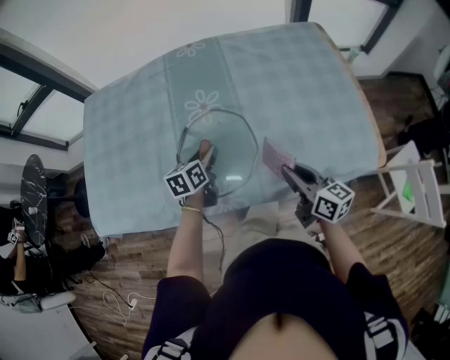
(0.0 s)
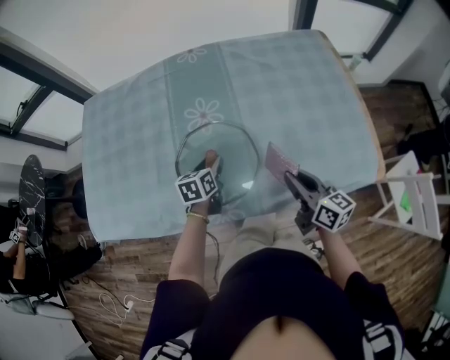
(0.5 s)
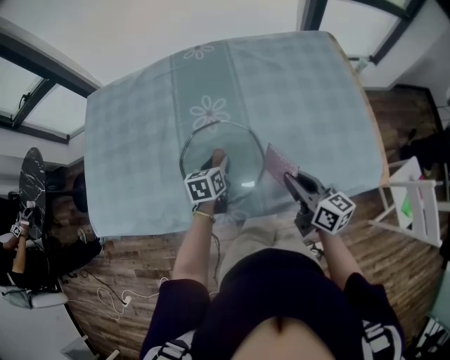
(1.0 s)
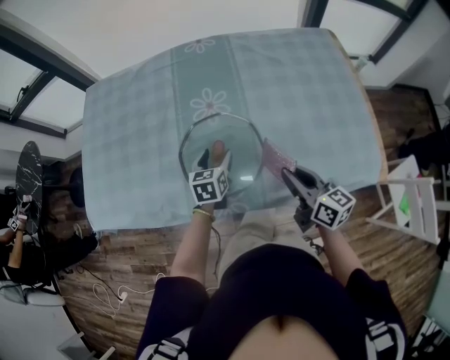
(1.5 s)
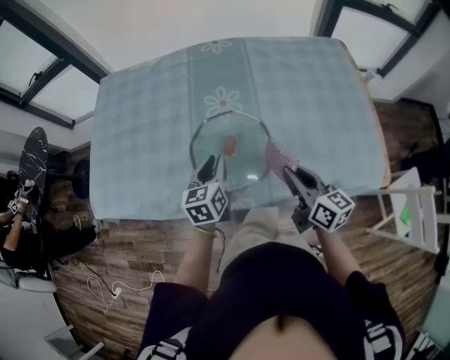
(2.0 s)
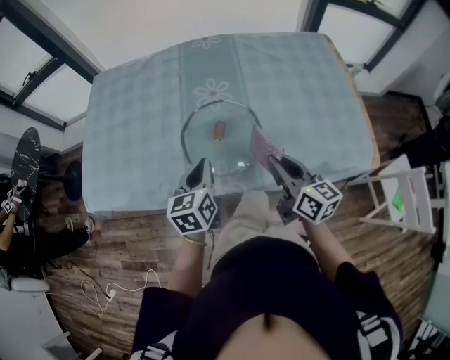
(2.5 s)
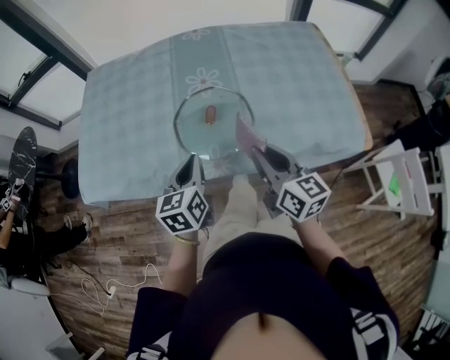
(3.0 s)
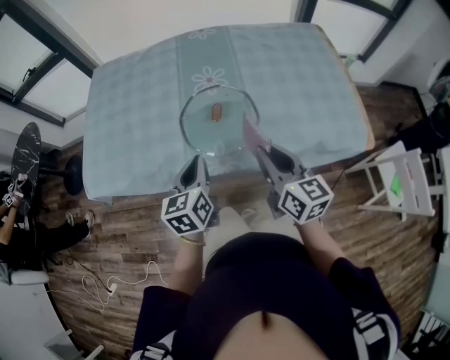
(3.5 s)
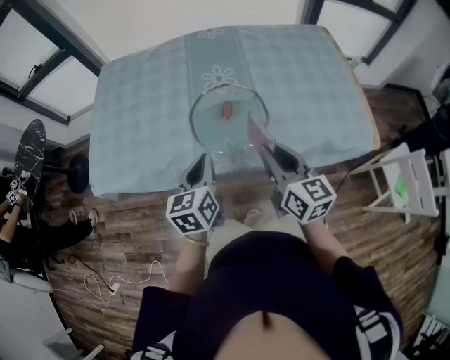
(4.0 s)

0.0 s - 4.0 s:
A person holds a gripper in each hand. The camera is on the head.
0.0 s - 2.0 s: The left gripper goes roughly 5 cm upward and backward, and opens, then closes once more.
2.0 s - 4.0 s: The right gripper shifts about 15 cm to the left, backward and upward. Meanwhile the left gripper heads backward and upward, covering approximately 15 cm, and closes up.

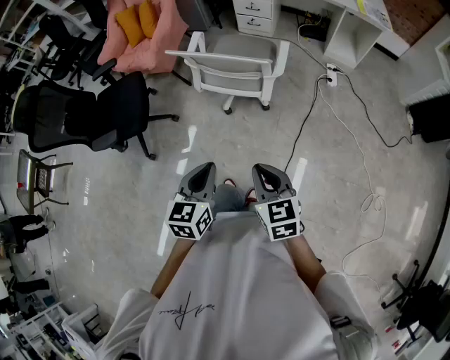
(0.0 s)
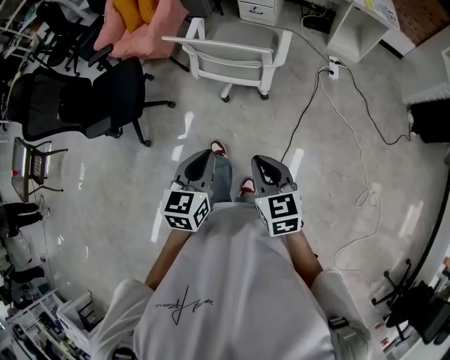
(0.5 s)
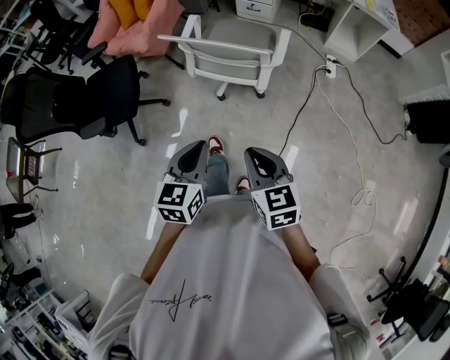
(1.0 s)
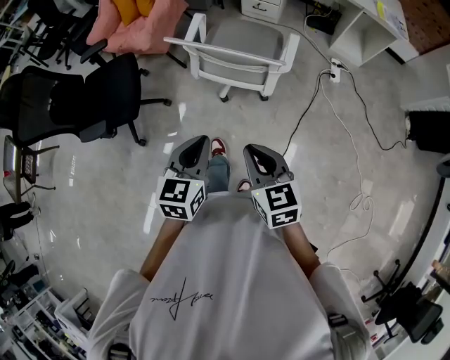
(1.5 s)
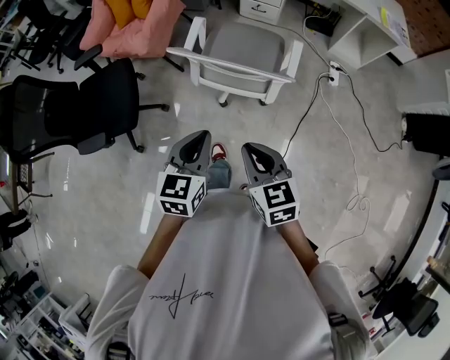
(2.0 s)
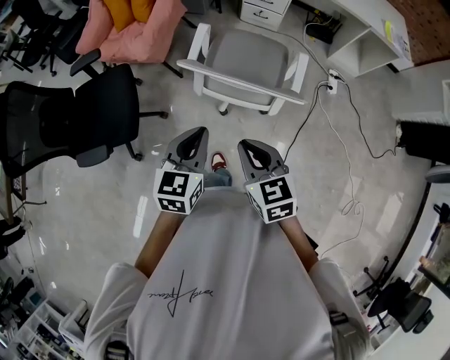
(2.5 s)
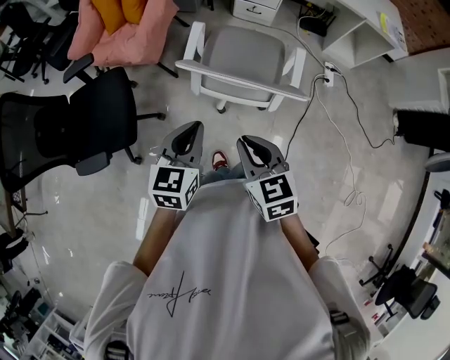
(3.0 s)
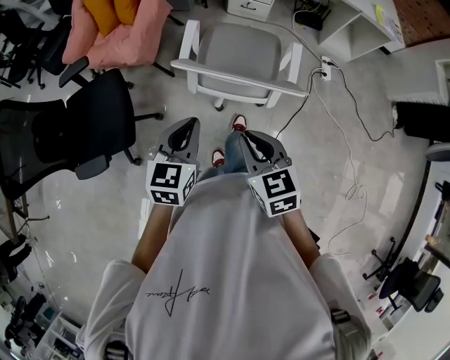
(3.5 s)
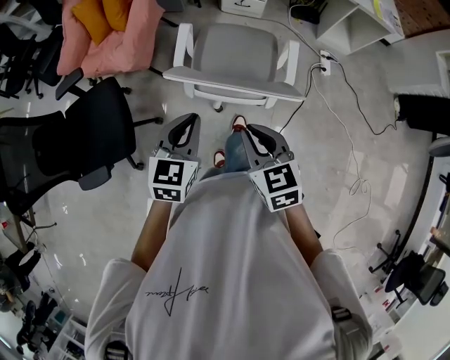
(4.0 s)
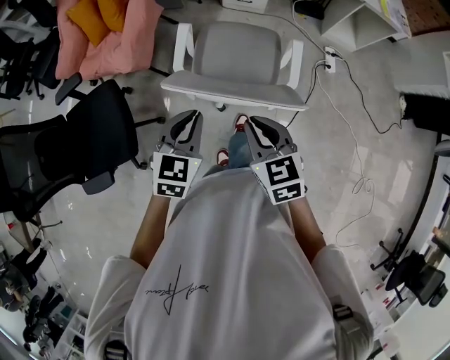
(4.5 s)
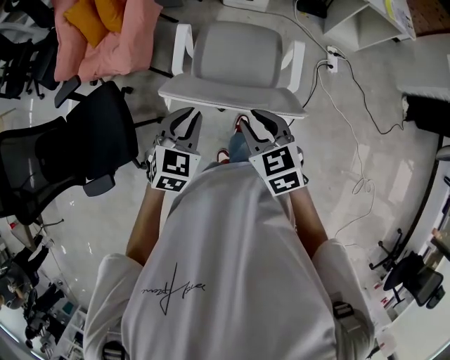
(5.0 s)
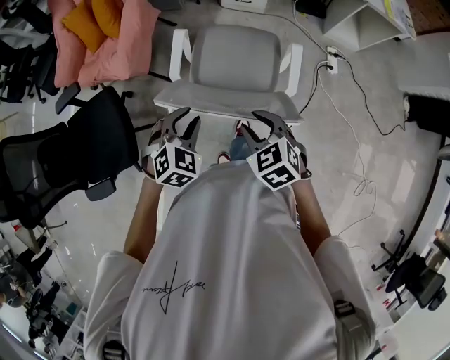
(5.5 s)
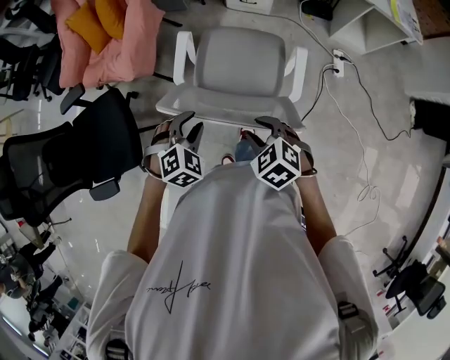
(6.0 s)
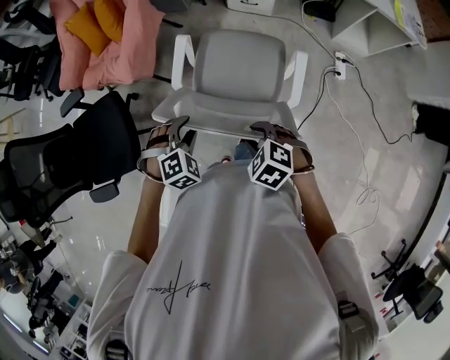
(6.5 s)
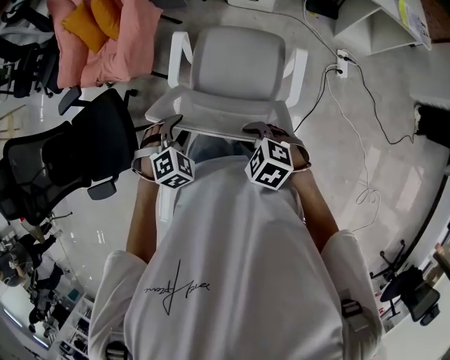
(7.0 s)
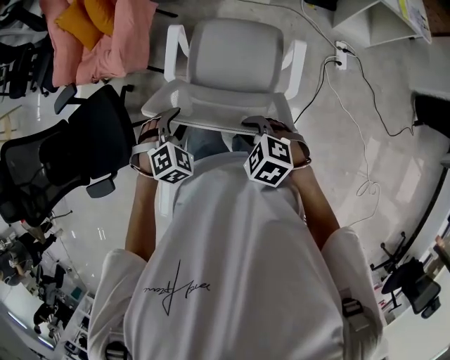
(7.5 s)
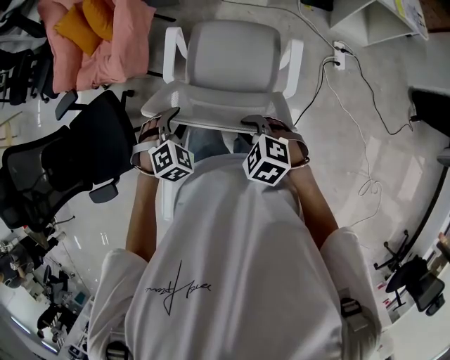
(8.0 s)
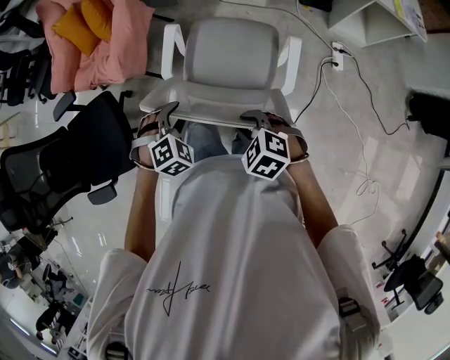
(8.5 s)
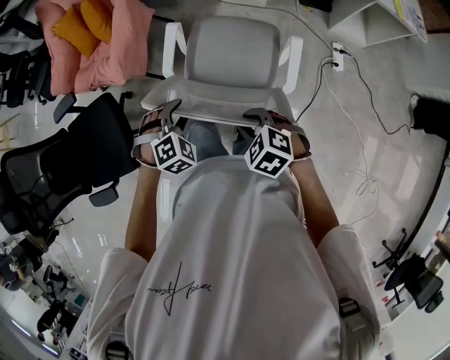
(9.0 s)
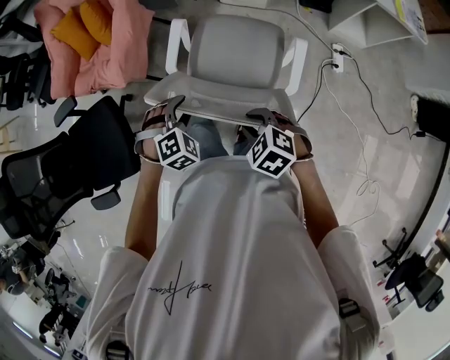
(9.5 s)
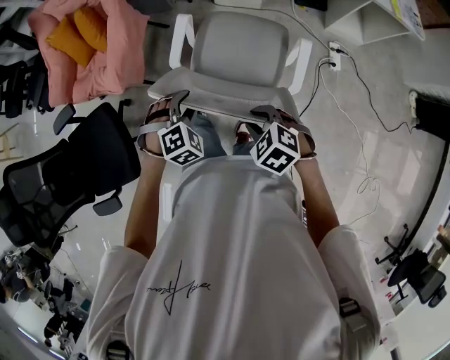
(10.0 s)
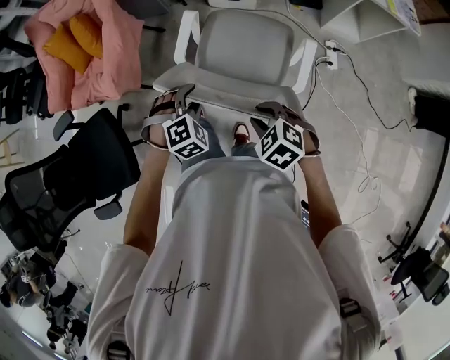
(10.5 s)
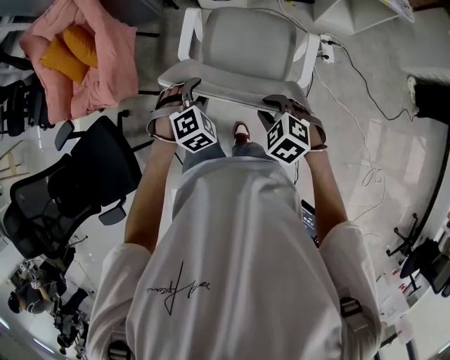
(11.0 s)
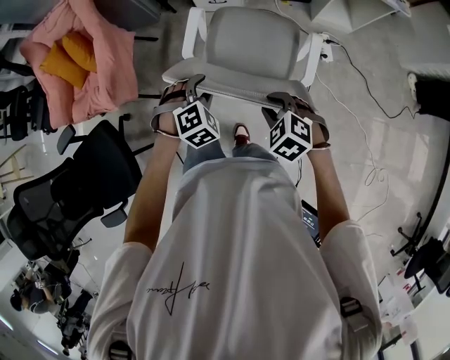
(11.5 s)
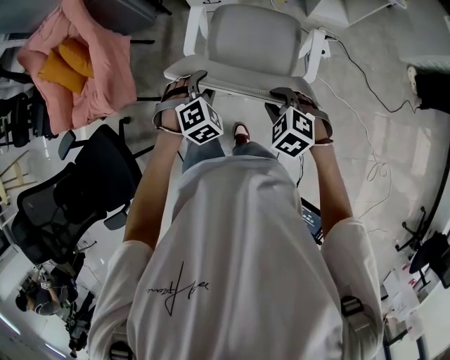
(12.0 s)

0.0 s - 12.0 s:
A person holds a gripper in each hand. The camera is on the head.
0.0 s - 2.0 s: The two grippers go roughly 20 cm forward.
2.0 s - 4.0 s: The grippers both shift forward by roughly 15 cm.
4.0 s - 6.0 s: The left gripper travels downward and forward by approximately 15 cm, twists about 40 degrees clockwise, seen from behind, and opens up. The right gripper shifts about 15 cm downward, forward and to the right, swivels approximately 40 degrees, and opens its fingers.
6.0 s - 8.0 s: The left gripper ends up approximately 5 cm from where it was.
8.0 s - 10.0 s: Both grippers travel together forward and to the right, approximately 10 cm.
10.0 s - 12.0 s: Both grippers travel together to the right, approximately 15 cm.

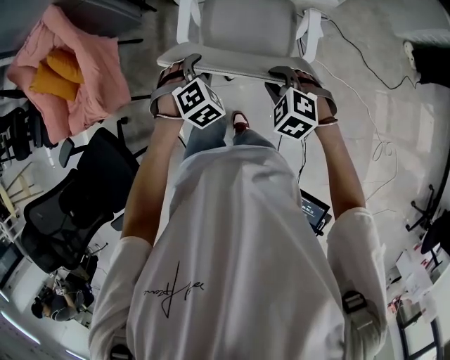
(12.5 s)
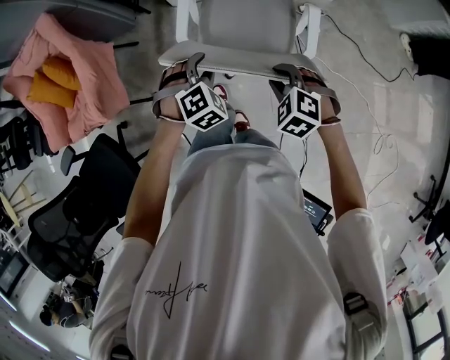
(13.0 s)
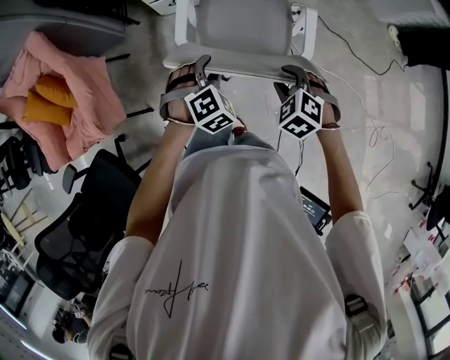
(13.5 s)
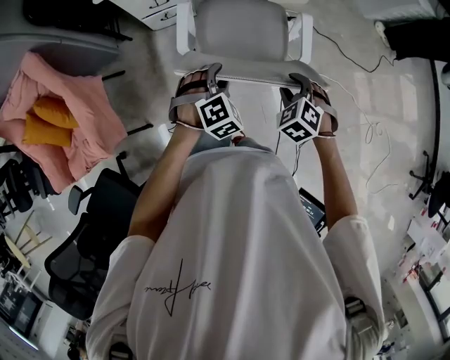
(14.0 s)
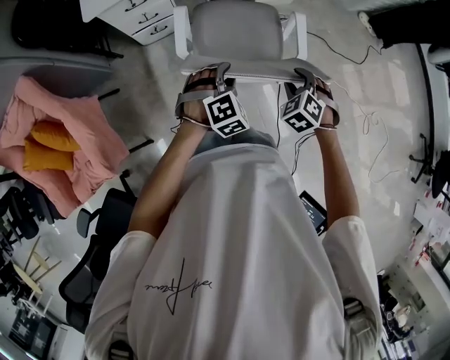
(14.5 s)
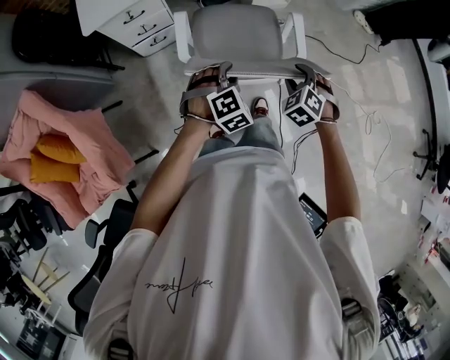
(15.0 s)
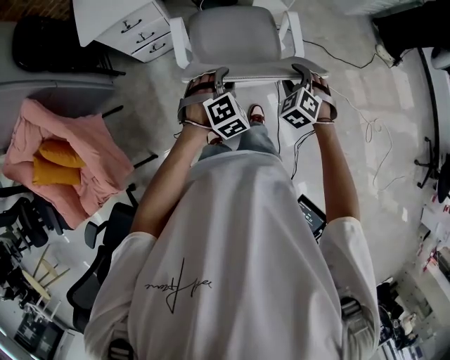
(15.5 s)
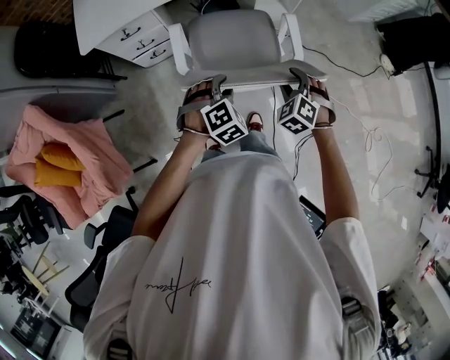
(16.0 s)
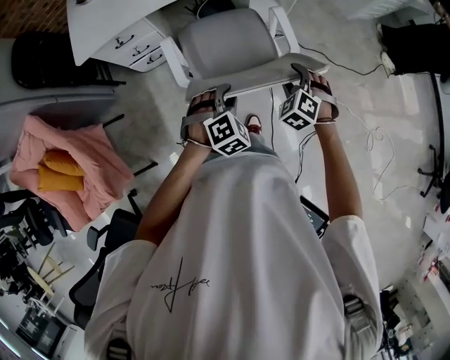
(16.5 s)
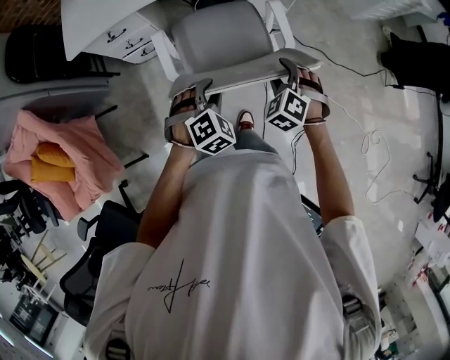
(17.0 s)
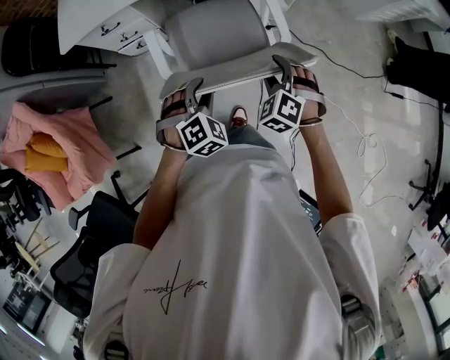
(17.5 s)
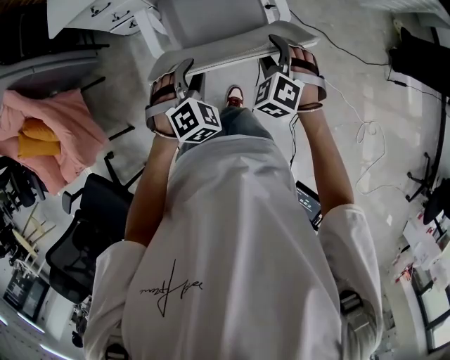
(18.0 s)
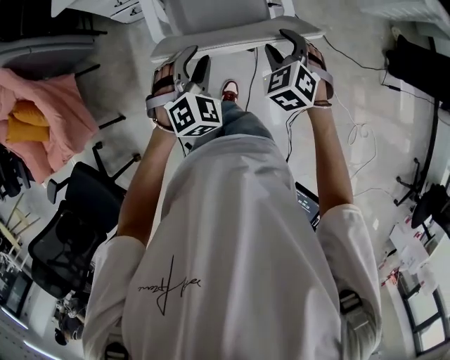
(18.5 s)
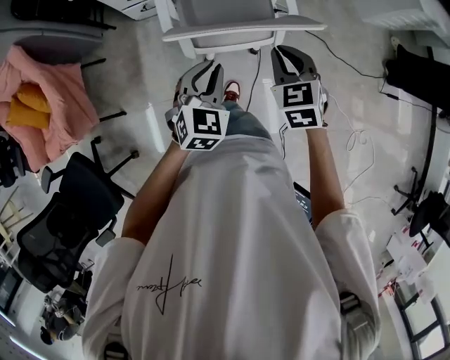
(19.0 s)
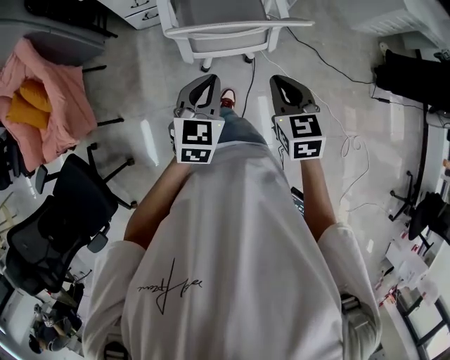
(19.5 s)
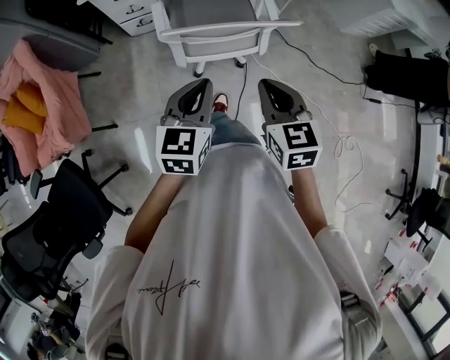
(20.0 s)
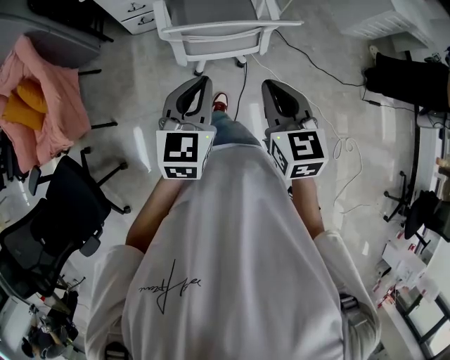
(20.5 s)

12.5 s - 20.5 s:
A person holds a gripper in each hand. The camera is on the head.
12.5 s - 14.5 s: The right gripper changes place by about 10 cm, and swivels approximately 40 degrees. Meanwhile the left gripper shifts by about 10 cm, and changes its angle by approximately 30 degrees.
14.5 s - 16.5 s: The two grippers go some 15 cm forward and to the right.
16.5 s - 18.5 s: The left gripper swivels some 20 degrees.
18.5 s - 20.5 s: Both grippers move backward and upward, roughly 25 cm. The right gripper turns by some 40 degrees, and closes its fingers. The left gripper rolls counterclockwise, seen from behind, by roughly 50 degrees, and closes up.

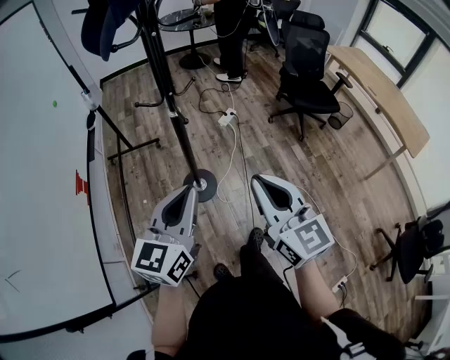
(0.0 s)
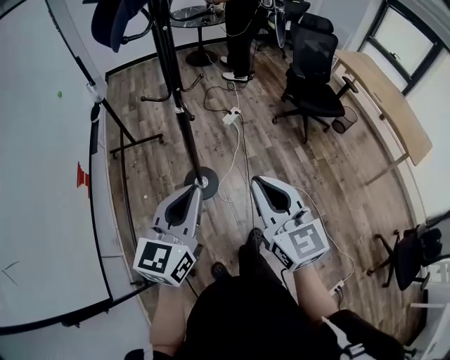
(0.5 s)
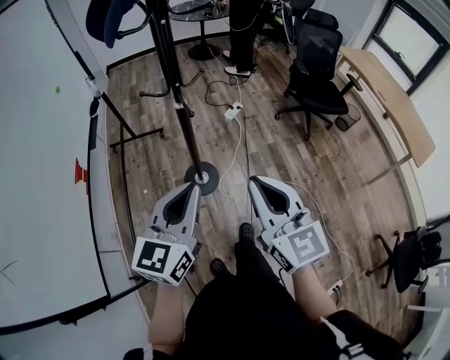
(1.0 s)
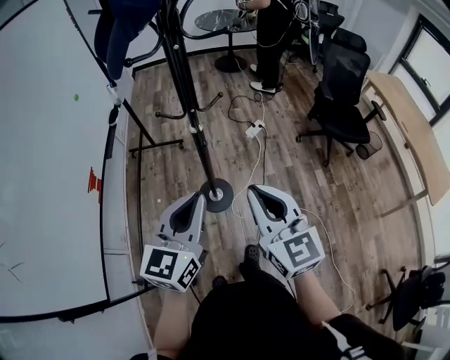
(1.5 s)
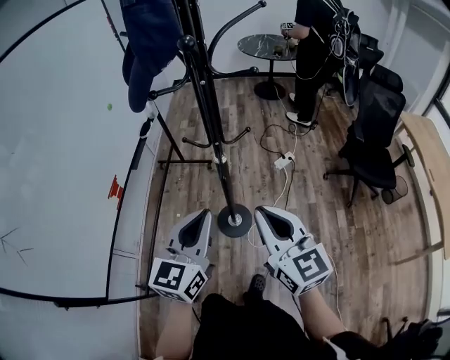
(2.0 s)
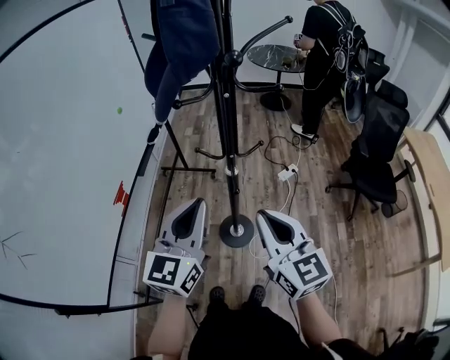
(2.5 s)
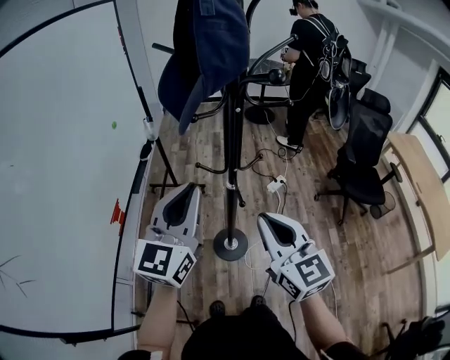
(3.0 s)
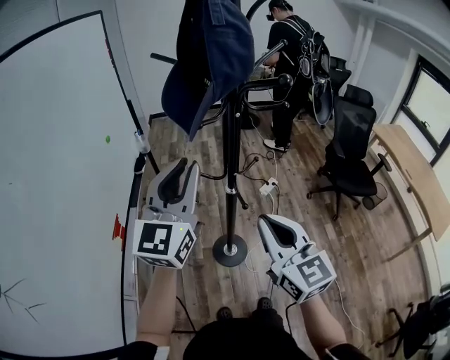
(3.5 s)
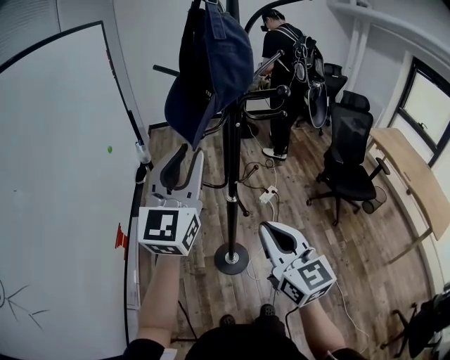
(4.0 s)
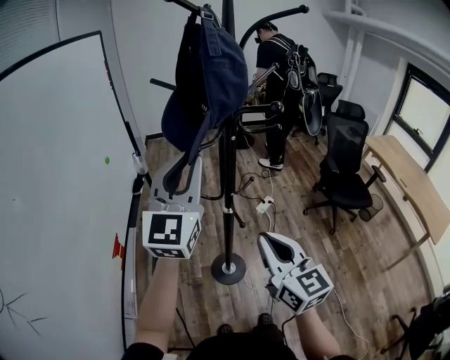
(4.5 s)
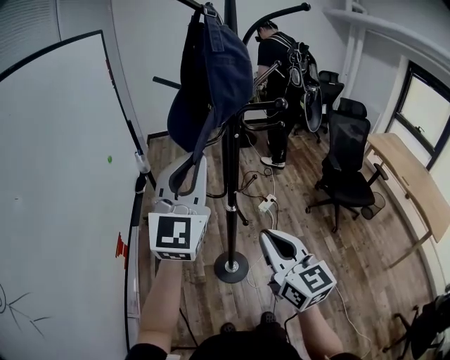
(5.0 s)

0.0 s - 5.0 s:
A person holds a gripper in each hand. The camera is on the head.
0.0 s - 2.5 s: The left gripper heads forward and upward, covering some 15 cm, and turns by approximately 30 degrees. Meanwhile the right gripper travels forward by approximately 15 cm.
2.5 s - 5.0 s: The left gripper moves upward and forward, some 20 cm, and turns by roughly 30 degrees; the right gripper shifts by roughly 5 cm.
